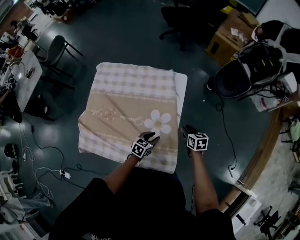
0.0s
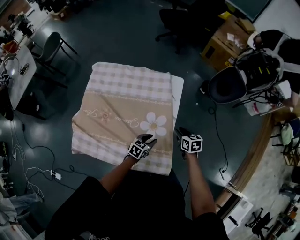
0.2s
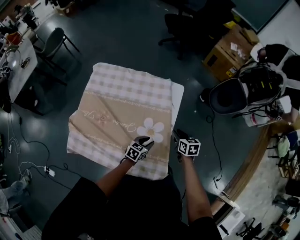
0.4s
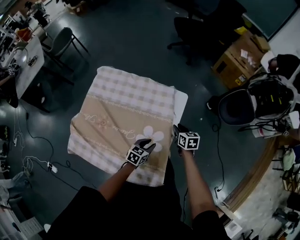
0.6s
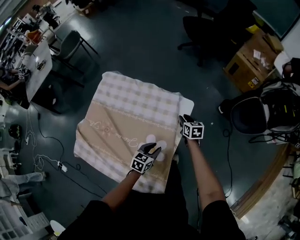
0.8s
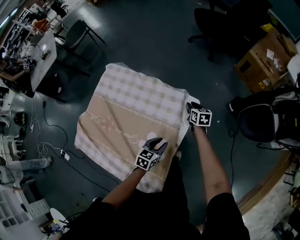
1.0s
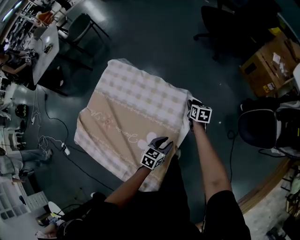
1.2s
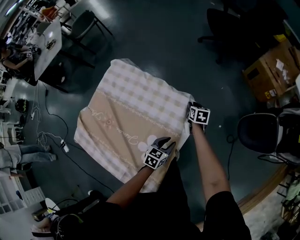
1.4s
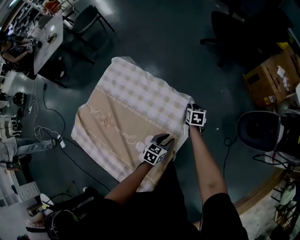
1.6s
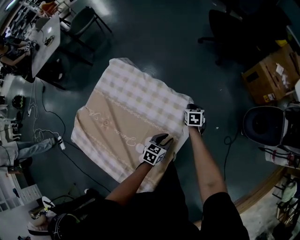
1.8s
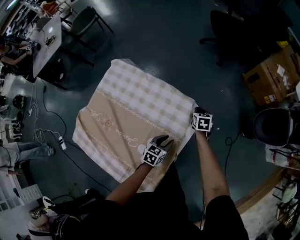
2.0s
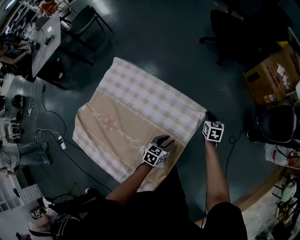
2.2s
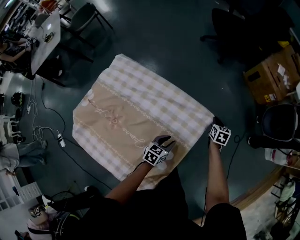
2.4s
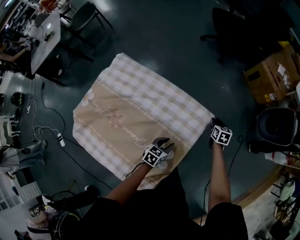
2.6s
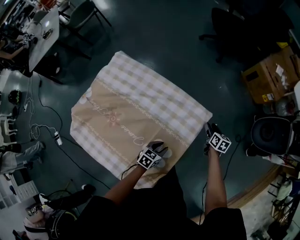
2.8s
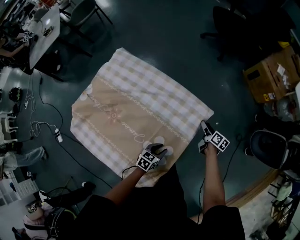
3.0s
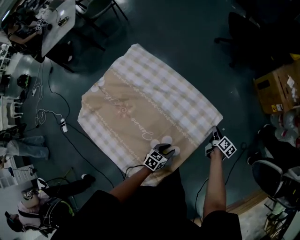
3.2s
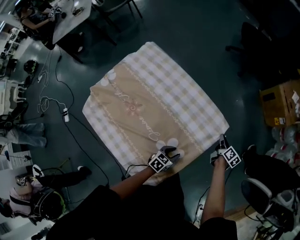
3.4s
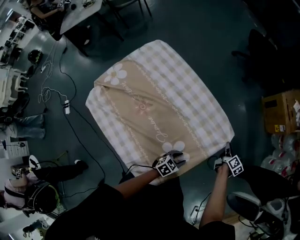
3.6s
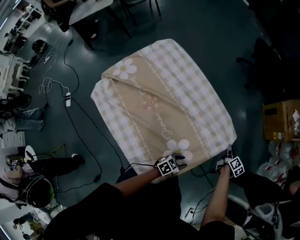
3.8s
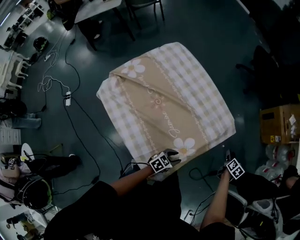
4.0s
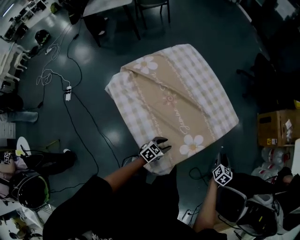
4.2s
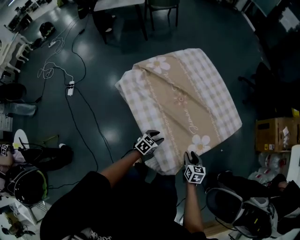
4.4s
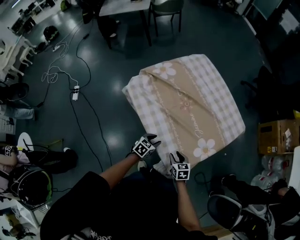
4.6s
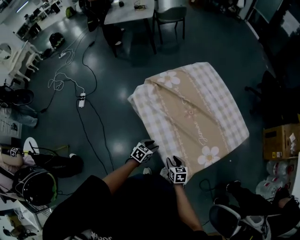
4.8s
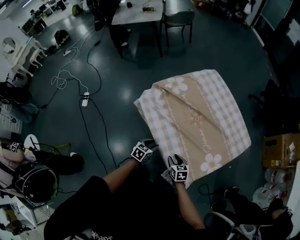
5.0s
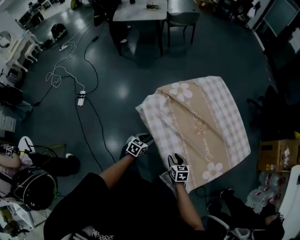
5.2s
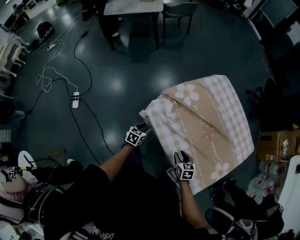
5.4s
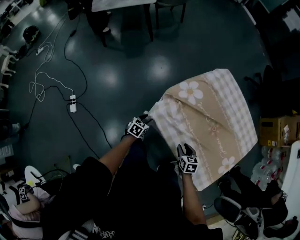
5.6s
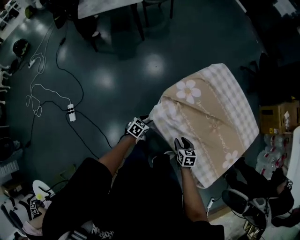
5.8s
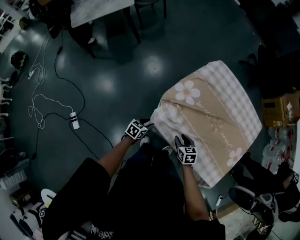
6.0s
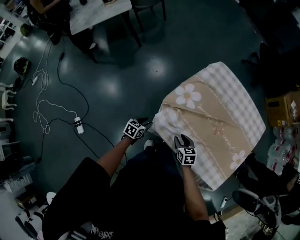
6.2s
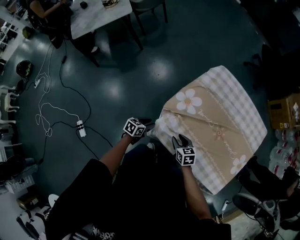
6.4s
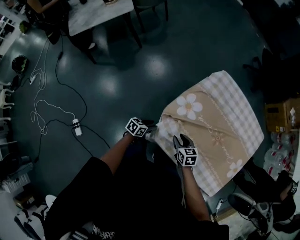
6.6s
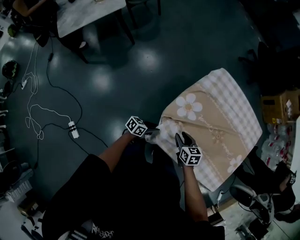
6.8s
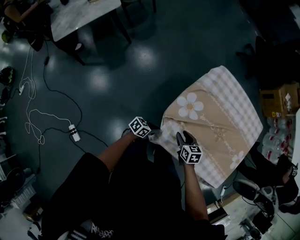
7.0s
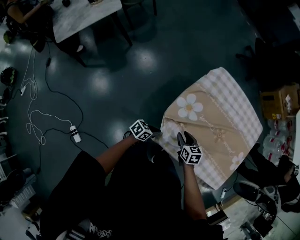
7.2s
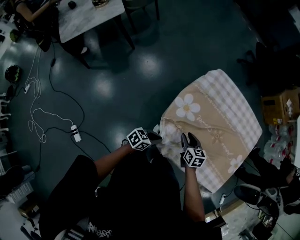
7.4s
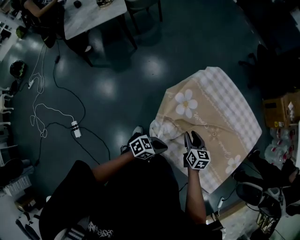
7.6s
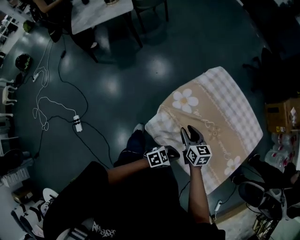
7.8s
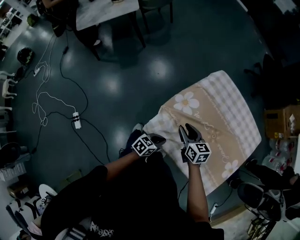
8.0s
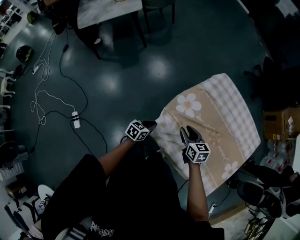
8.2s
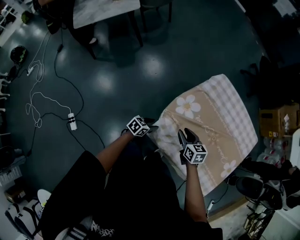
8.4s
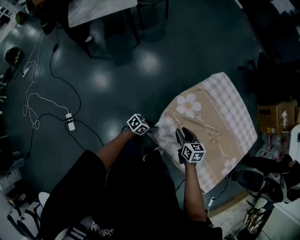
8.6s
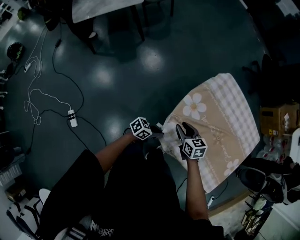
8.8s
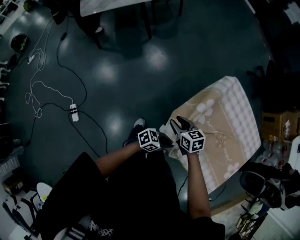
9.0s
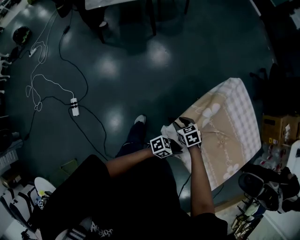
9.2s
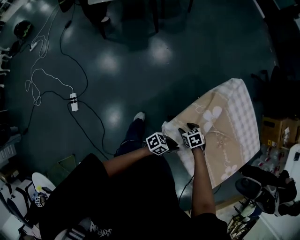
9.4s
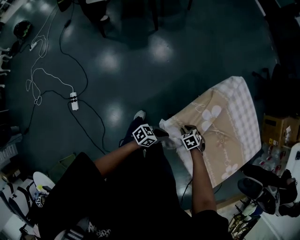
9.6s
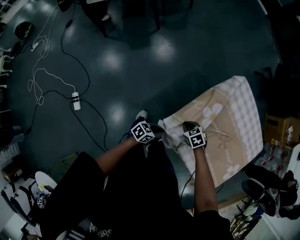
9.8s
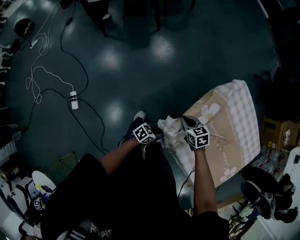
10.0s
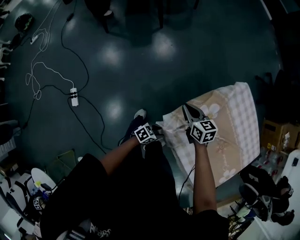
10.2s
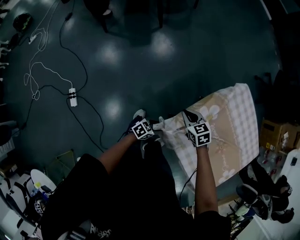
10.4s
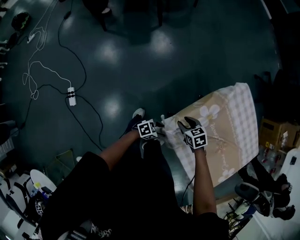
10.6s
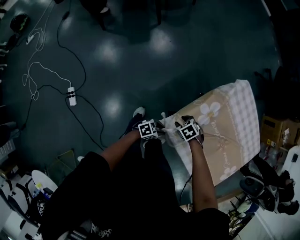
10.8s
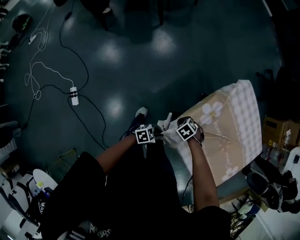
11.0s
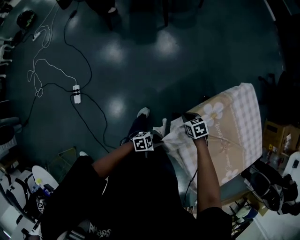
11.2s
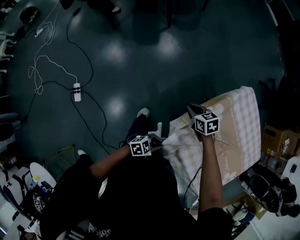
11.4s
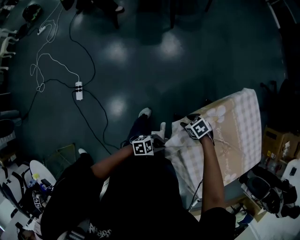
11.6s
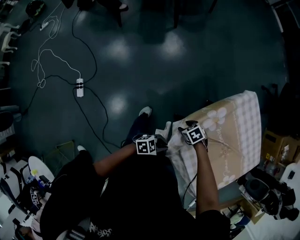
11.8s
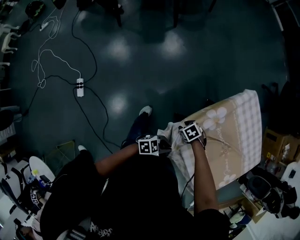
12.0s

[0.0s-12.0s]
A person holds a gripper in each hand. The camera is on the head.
0.0s to 1.6s: The left gripper heads forward, covering some 20 cm, and swivels approximately 30 degrees, while the right gripper moves forward, roughly 35 cm.
1.6s to 3.0s: The right gripper moves to the right and backward, approximately 20 cm, turns by roughly 40 degrees, and opens its fingers. The left gripper heads backward, covering roughly 10 cm.
3.0s to 4.4s: The left gripper moves some 30 cm, while the right gripper shifts by roughly 40 cm, twists roughly 50 degrees counterclockwise, seen from behind, and closes, then reopens.
4.4s to 6.0s: The pair of grippers is taken about 50 cm.
6.0s to 7.6s: The right gripper heads forward and upward, covering about 15 cm, while the left gripper goes about 20 cm upward and to the right, rotates some 30 degrees, and closes.
7.6s to 9.0s: The right gripper changes place by roughly 20 cm, and turns by roughly 30 degrees; the left gripper goes downward and returns, about 15 cm each way, and opens and closes again.
9.0s to 10.4s: The left gripper travels downward by about 15 cm, turns by some 30 degrees, and opens its fingers. Meanwhile the right gripper goes up and down, approximately 15 cm each way, reversing 2 times, and closes.
10.4s to 12.0s: The right gripper moves up and down over approximately 10 cm, changing direction 2 times, rotates some 40 degrees, and opens, while the left gripper shifts roughly 10 cm upward, rotates about 20 degrees, and closes.

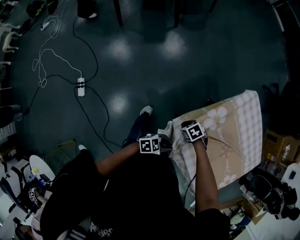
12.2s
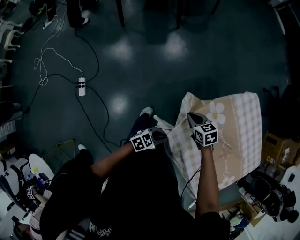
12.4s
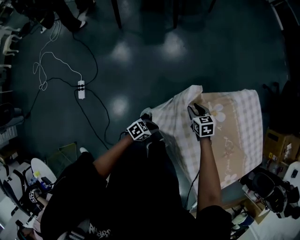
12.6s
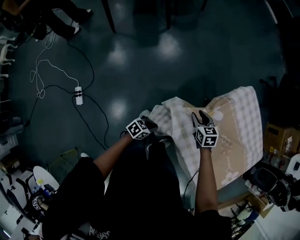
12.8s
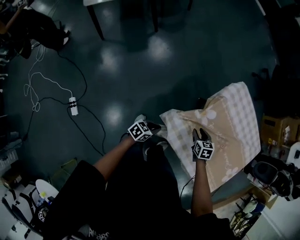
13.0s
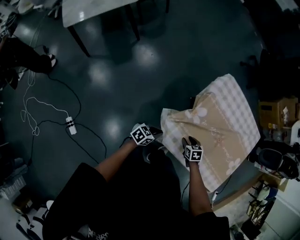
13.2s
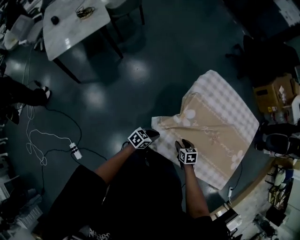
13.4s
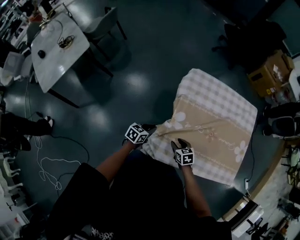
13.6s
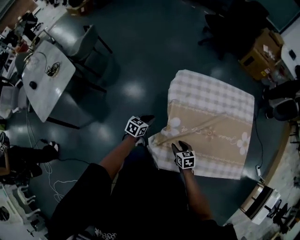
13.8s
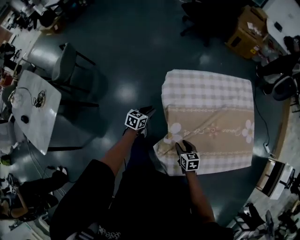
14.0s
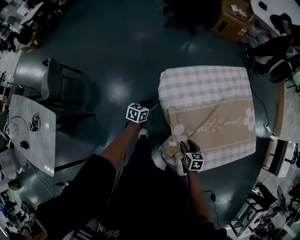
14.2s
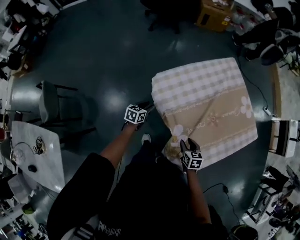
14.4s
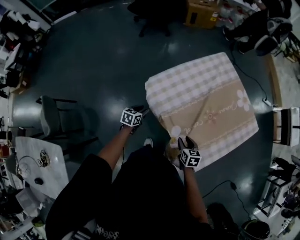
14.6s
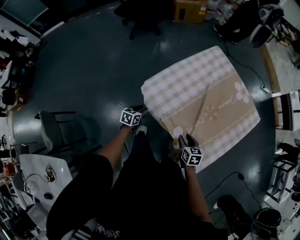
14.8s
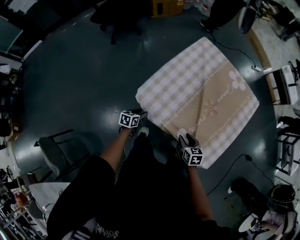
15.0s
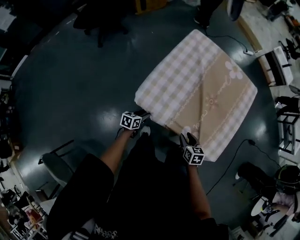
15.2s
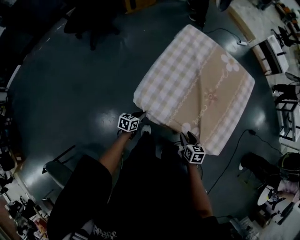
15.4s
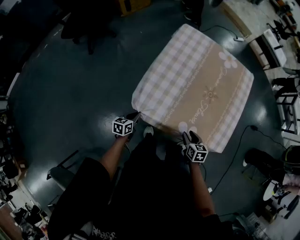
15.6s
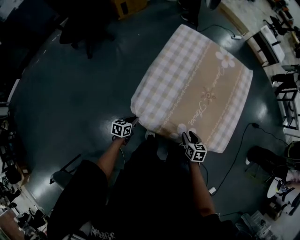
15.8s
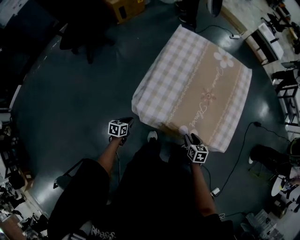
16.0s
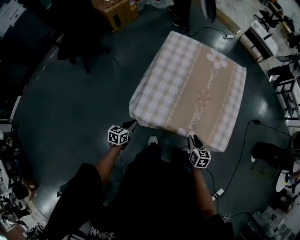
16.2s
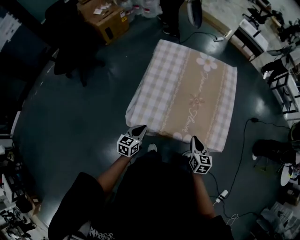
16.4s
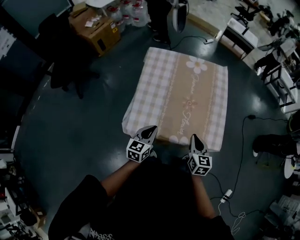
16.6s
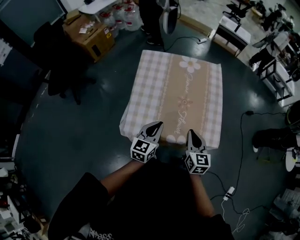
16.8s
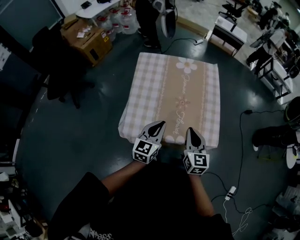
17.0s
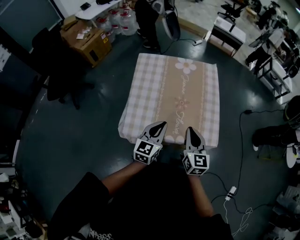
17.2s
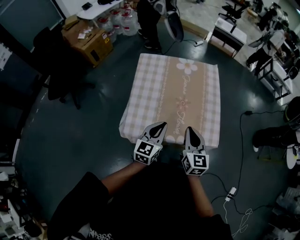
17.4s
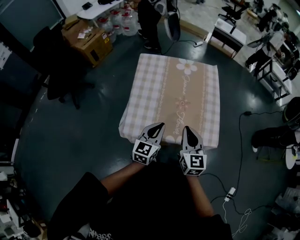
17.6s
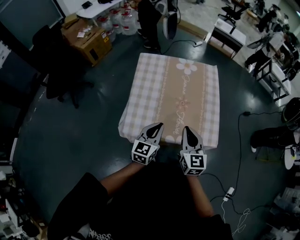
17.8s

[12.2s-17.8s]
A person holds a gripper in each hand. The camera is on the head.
12.2s to 13.6s: The left gripper ends up roughly 25 cm from where it was, while the right gripper goes up and down, some 10 cm each way, reversing 2 times, turns by roughly 70 degrees, and opens up.
13.6s to 15.0s: The right gripper ends up some 15 cm from where it was, and changes its angle by about 80 degrees, while the left gripper ends up approximately 40 cm from where it was, changes its angle by about 50 degrees, and opens its fingers.
15.0s to 16.4s: The left gripper shifts roughly 15 cm upward, changes its angle by some 30 degrees, and closes up; the right gripper heads upward, covering approximately 10 cm, turns by roughly 40 degrees, and closes.
16.4s to 17.8s: The left gripper travels upward, to the right and forward by about 20 cm, and swivels approximately 20 degrees; the right gripper shifts about 15 cm upward, and swivels some 20 degrees.

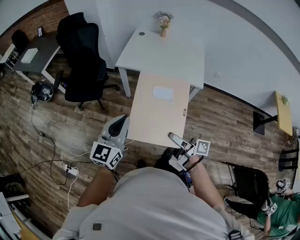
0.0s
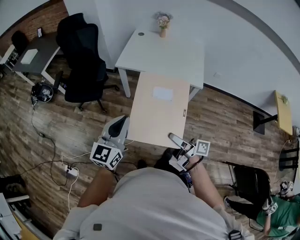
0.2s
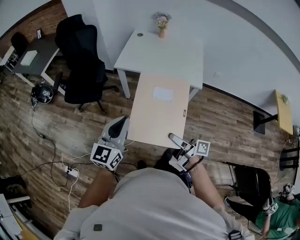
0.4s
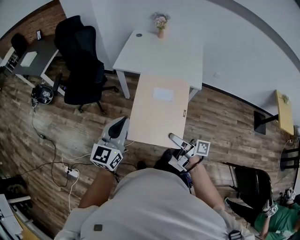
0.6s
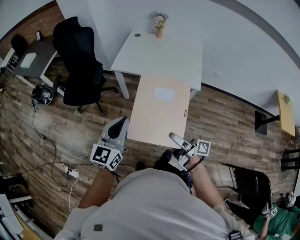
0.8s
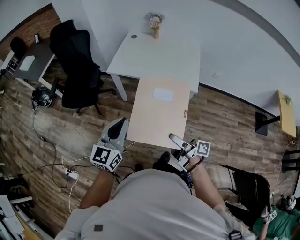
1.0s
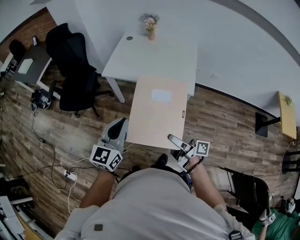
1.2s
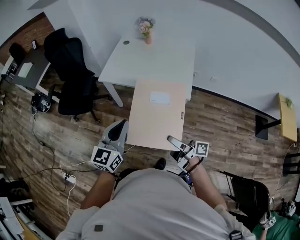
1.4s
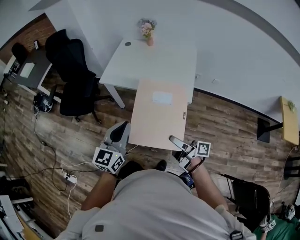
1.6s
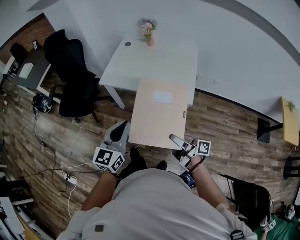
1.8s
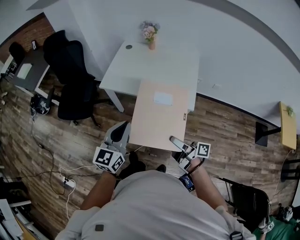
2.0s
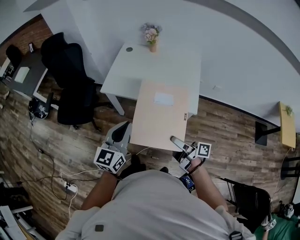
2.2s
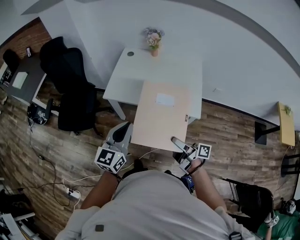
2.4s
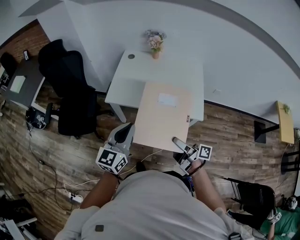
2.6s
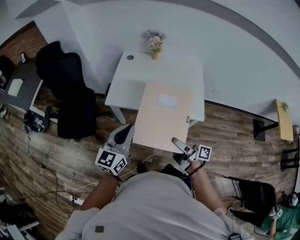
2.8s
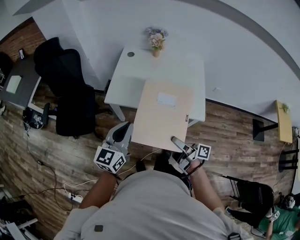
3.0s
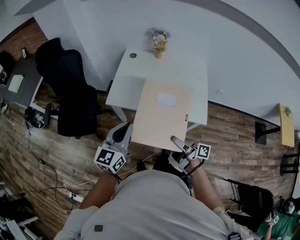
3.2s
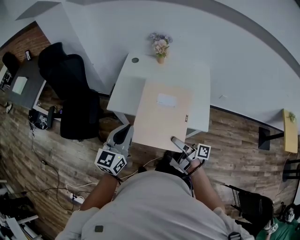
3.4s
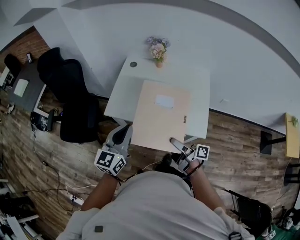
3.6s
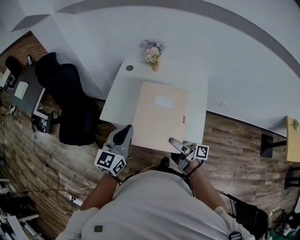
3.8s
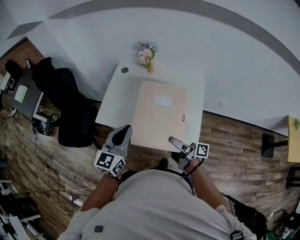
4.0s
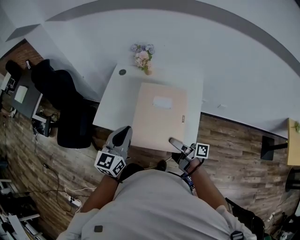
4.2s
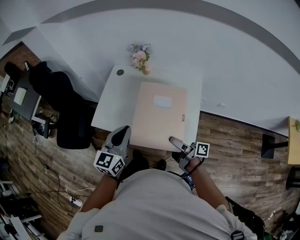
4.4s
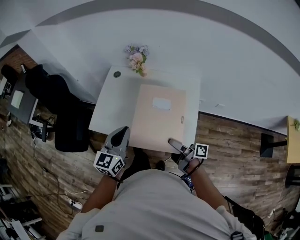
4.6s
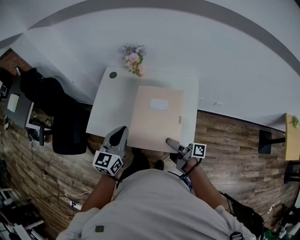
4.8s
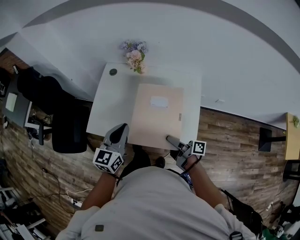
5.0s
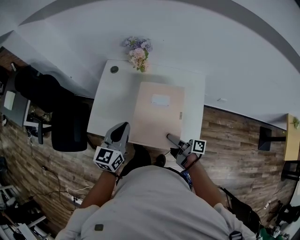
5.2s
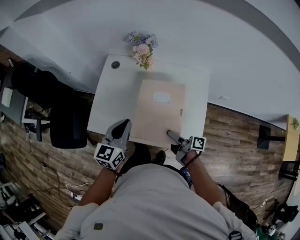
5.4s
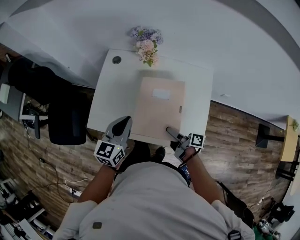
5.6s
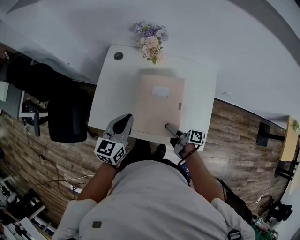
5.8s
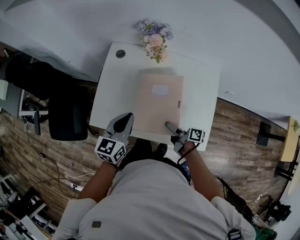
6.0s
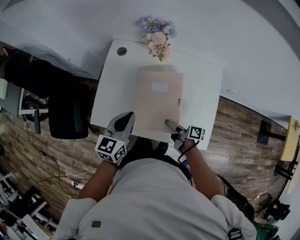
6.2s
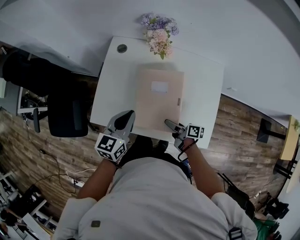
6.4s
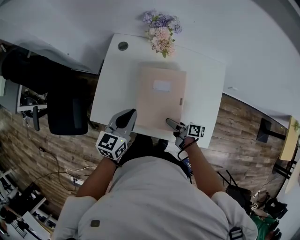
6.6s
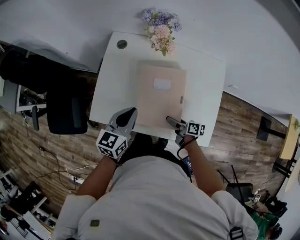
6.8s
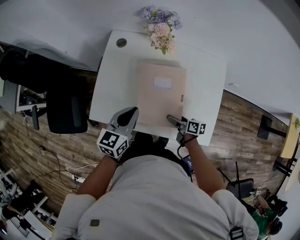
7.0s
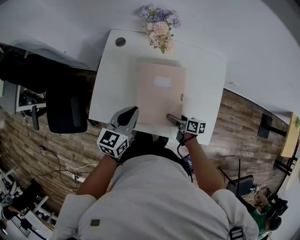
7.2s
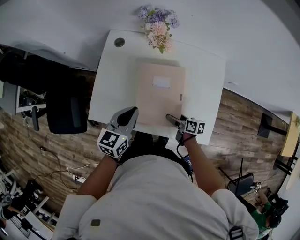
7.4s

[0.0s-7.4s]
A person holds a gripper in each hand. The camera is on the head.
0.0s to 1.4s: Both grippers move to the right and forward, approximately 20 cm.
1.4s to 3.0s: Both grippers travel together forward and to the left, approximately 25 cm.
3.0s to 4.4s: Both grippers move to the right and forward, roughly 25 cm.
4.4s to 6.0s: The two grippers go approximately 25 cm forward and downward. The right gripper turns by about 20 degrees.
6.0s to 7.4s: The right gripper shifts approximately 10 cm downward, and swivels some 20 degrees.
